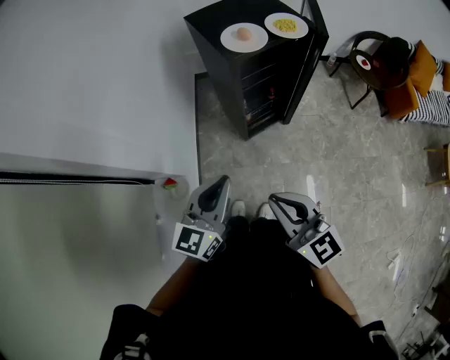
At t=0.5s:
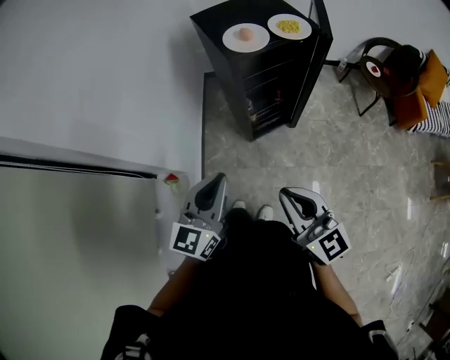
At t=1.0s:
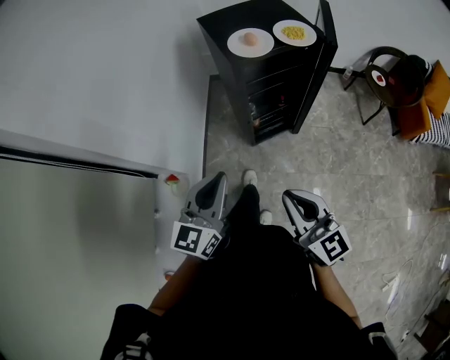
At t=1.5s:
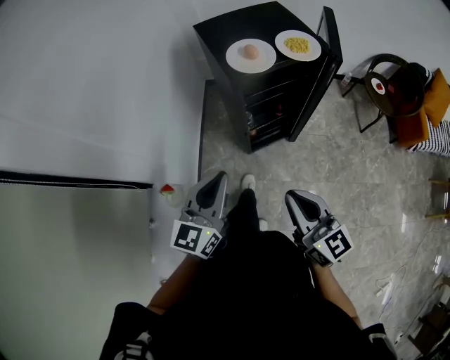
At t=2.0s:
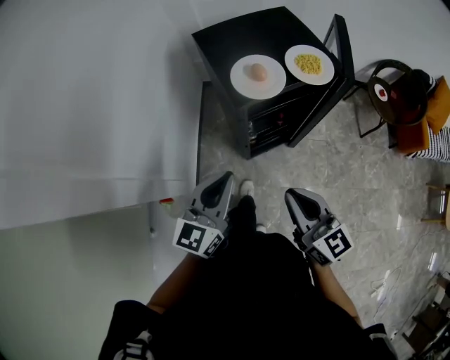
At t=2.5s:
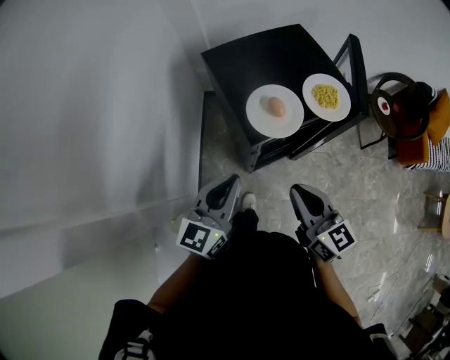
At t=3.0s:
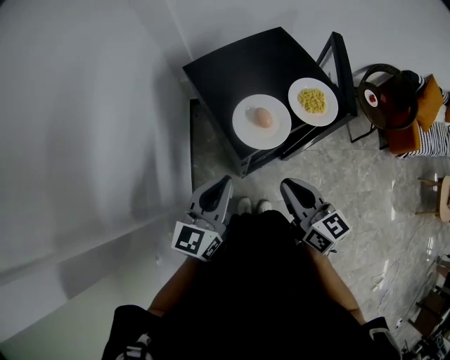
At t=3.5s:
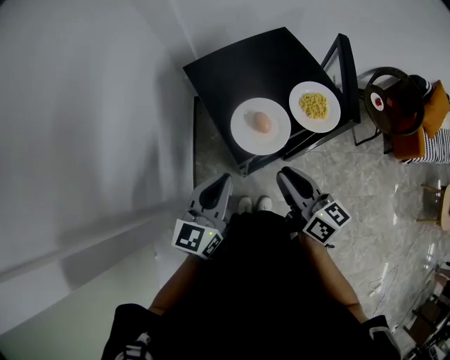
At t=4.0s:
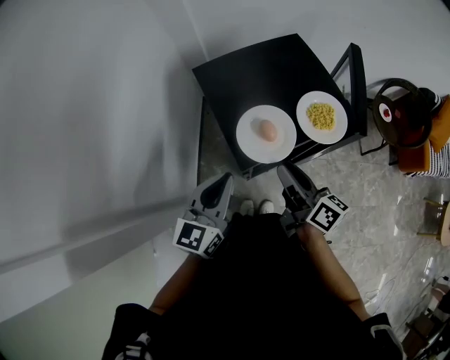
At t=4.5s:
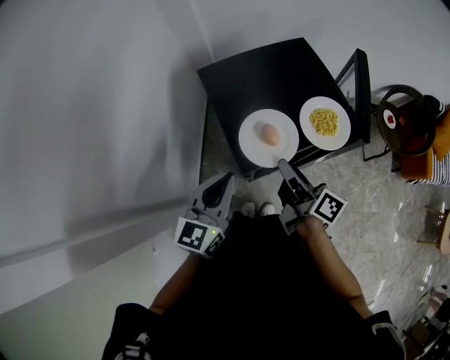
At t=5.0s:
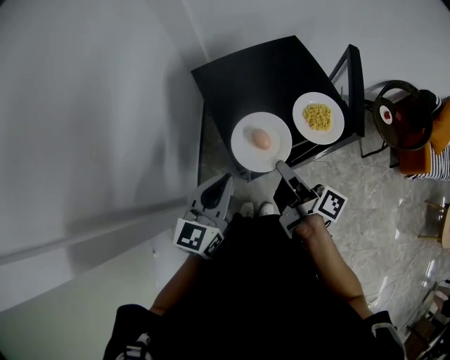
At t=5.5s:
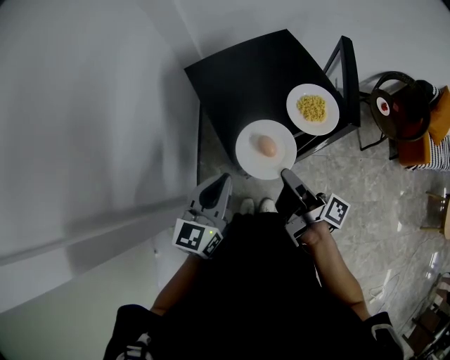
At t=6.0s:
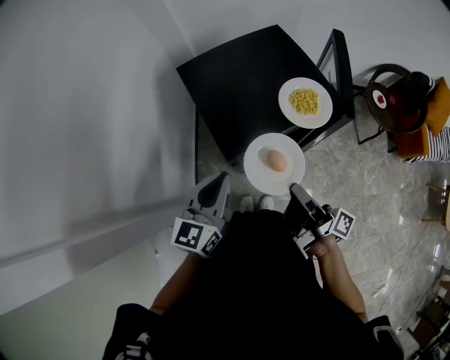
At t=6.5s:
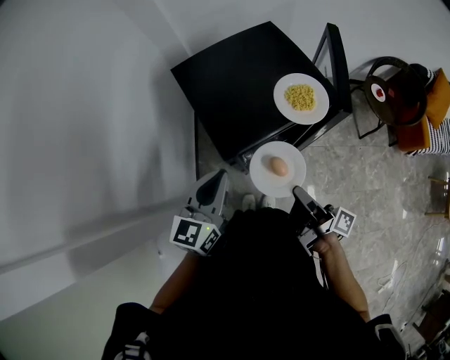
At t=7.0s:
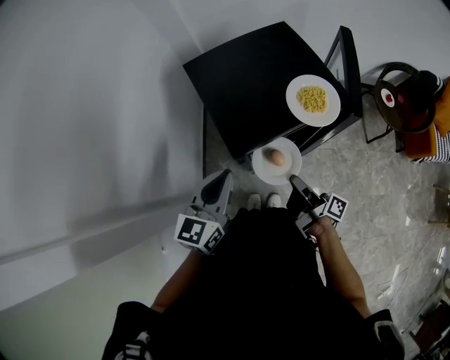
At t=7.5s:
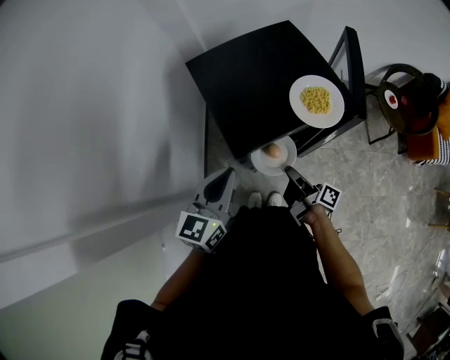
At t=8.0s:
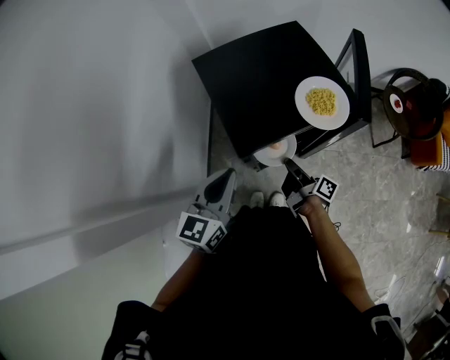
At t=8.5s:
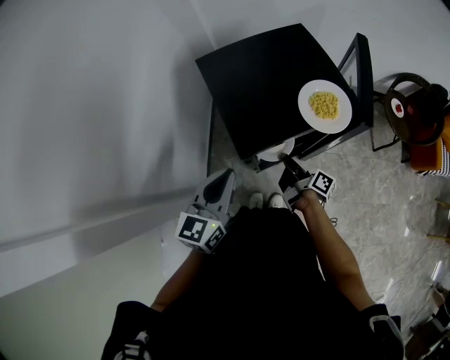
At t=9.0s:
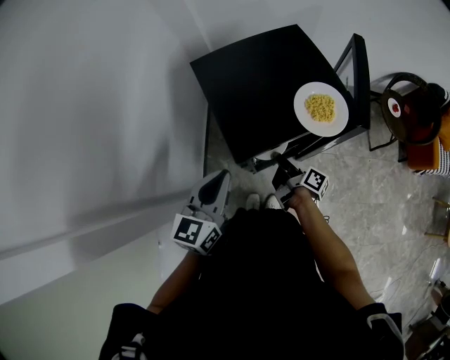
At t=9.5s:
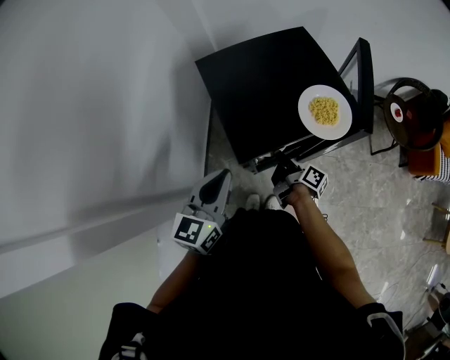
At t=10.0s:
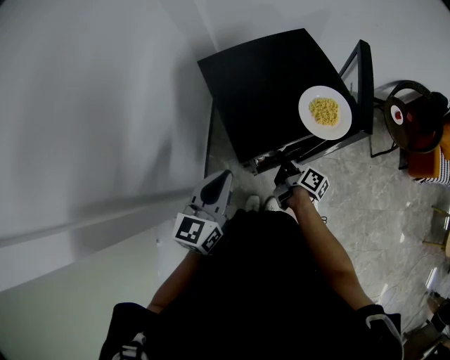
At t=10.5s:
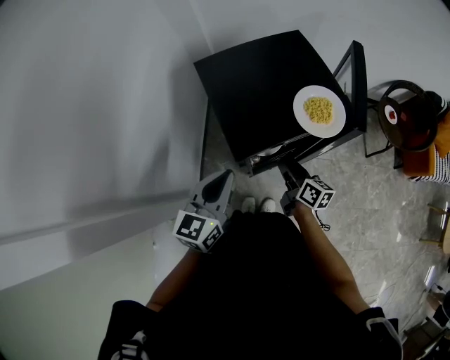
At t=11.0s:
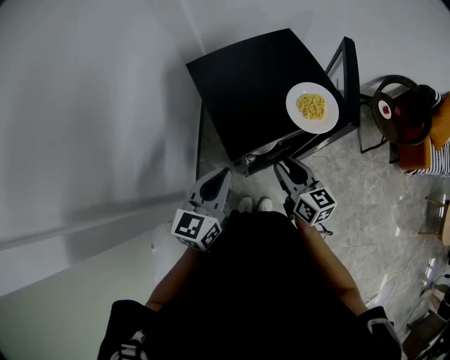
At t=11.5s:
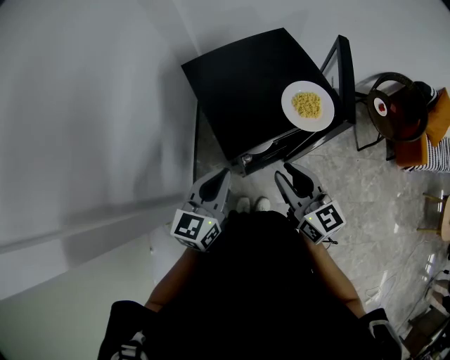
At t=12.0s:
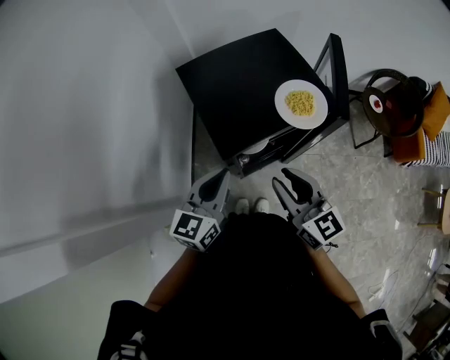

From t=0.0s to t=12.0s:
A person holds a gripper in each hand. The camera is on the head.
From t=0.0s to t=2.0s: The left gripper heads forward, covering some 15 cm. The right gripper travels forward and to the right by some 20 cm.
From t=2.0s to t=4.0s: Both grippers travel together forward, approximately 20 cm. The right gripper changes its angle by about 40 degrees, and opens up.
From t=4.0s to t=6.0s: The right gripper shifts roughly 10 cm backward and to the right, turns by some 40 degrees, and closes.
From t=6.0s to t=8.0s: The right gripper is displaced downward and forward by about 20 cm.
From t=8.0s to t=10.0s: The right gripper opens.
From t=10.0s to t=12.0s: The right gripper travels upward and backward by about 25 cm, and twists approximately 70 degrees counterclockwise, seen from behind.

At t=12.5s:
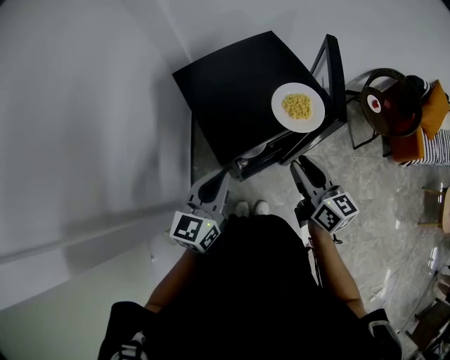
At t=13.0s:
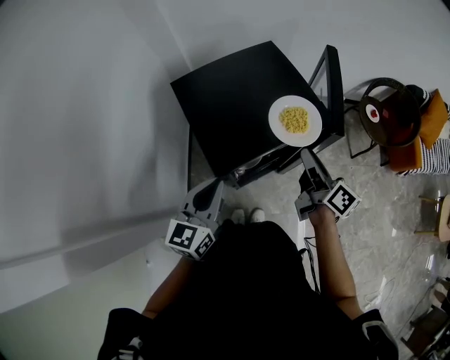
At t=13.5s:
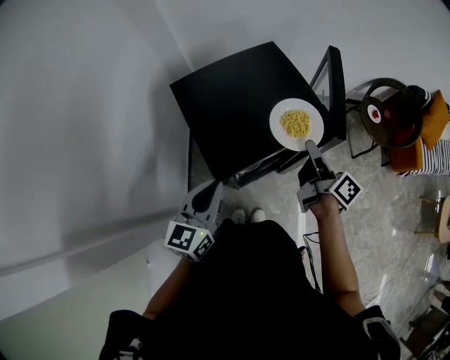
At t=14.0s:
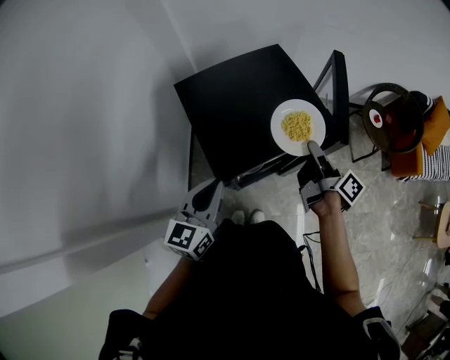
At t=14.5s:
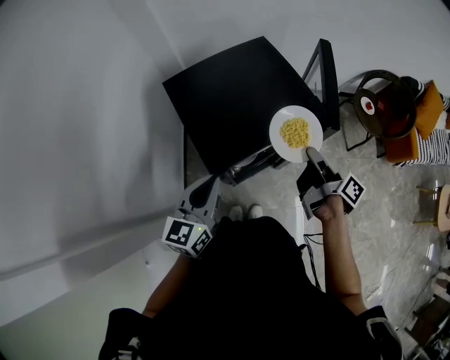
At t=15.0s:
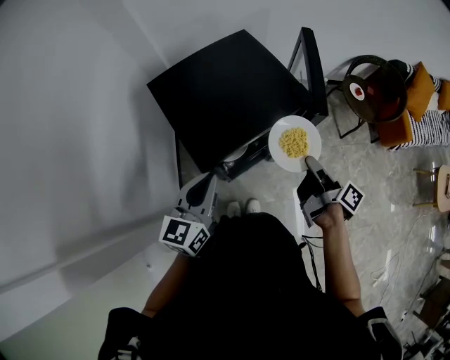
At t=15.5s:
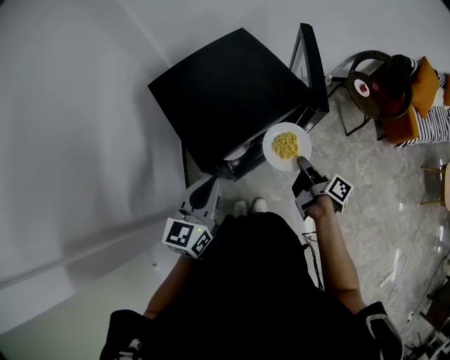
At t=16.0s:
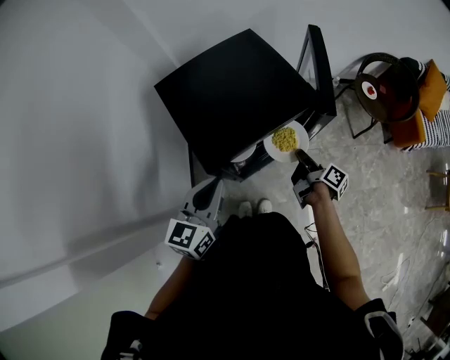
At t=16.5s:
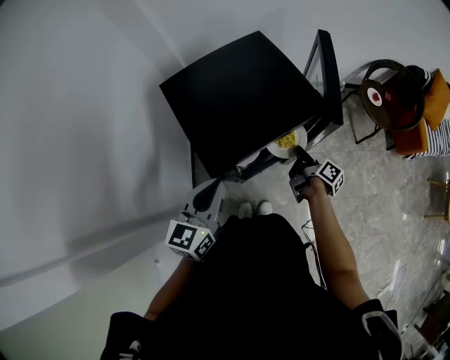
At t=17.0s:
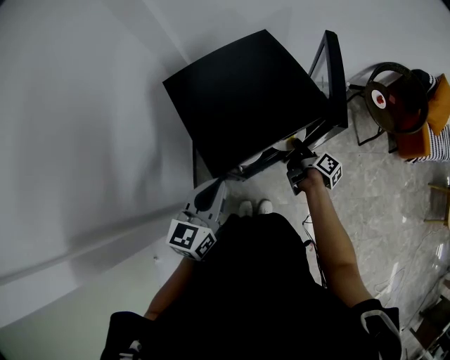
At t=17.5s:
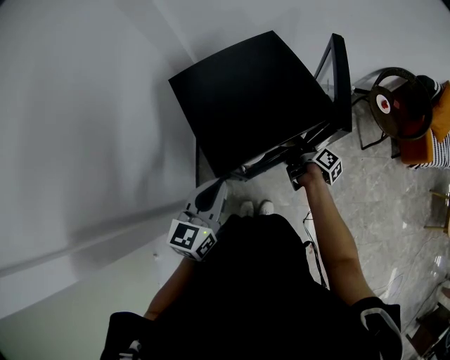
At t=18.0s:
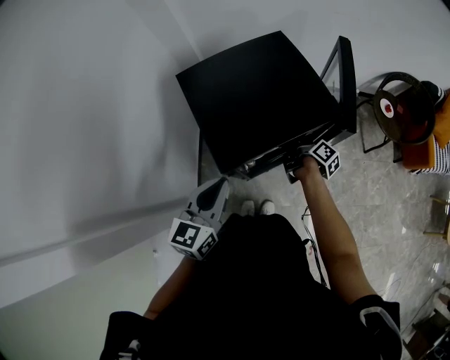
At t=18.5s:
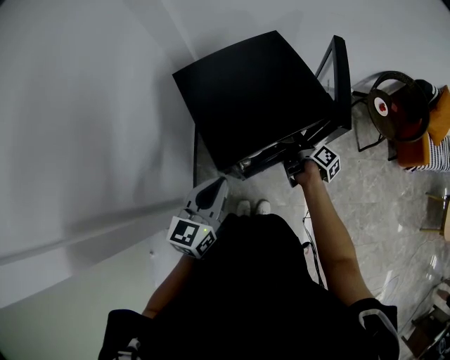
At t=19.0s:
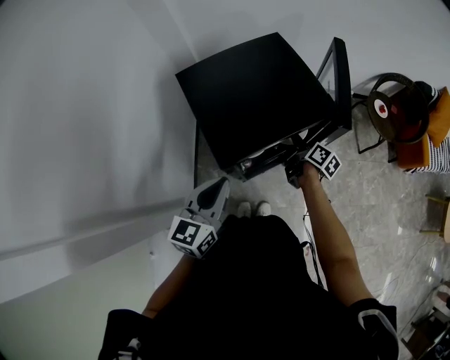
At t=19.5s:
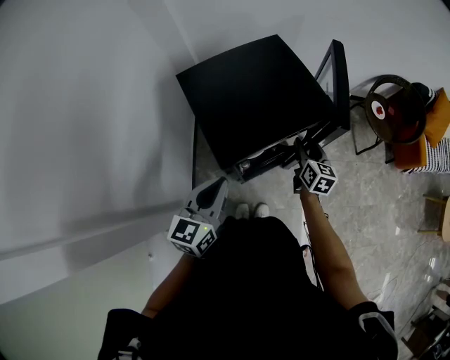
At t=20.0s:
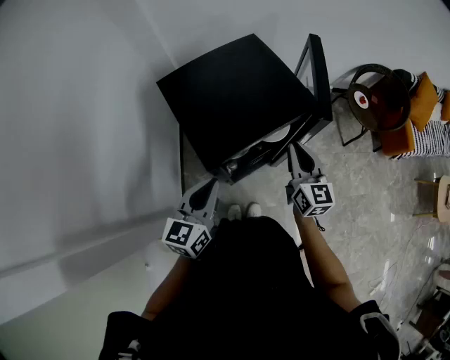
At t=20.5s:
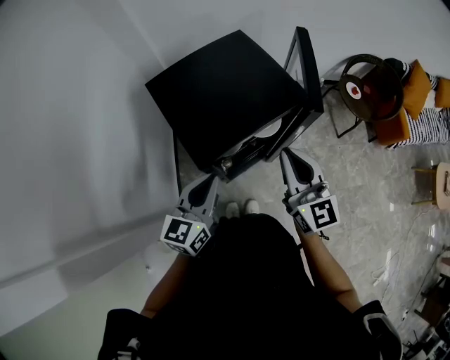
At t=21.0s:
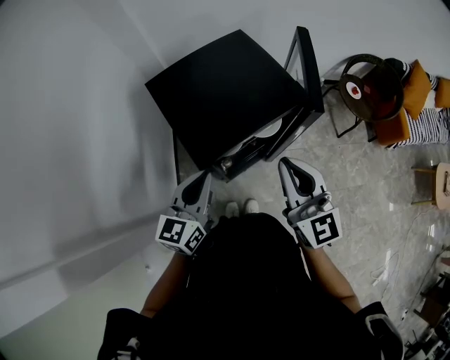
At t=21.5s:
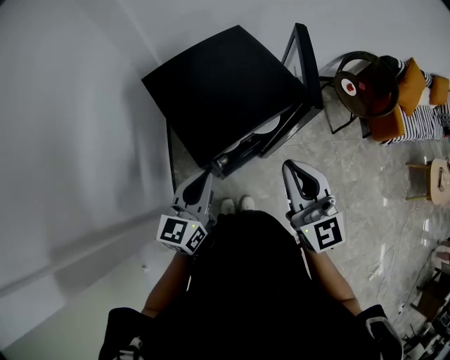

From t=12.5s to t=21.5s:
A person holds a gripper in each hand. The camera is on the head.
From t=12.5s to t=14.5s: The right gripper is displaced forward and to the right by roughly 10 cm, rotates around the line of its fingers by some 60 degrees, clockwise from behind, and closes.
From t=14.5s to t=17.0s: The right gripper heads downward, covering some 15 cm.
From t=17.0s to t=19.5s: The right gripper travels upward by about 5 cm, rotates around the line of its fingers by some 60 degrees, counterclockwise from behind, and opens its fingers.
From t=19.5s to t=21.5s: The right gripper heads upward and backward, covering some 30 cm, swivels roughly 40 degrees, and closes up.

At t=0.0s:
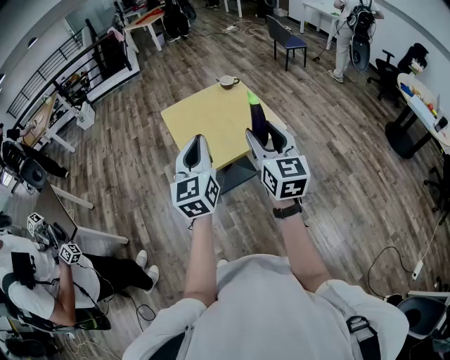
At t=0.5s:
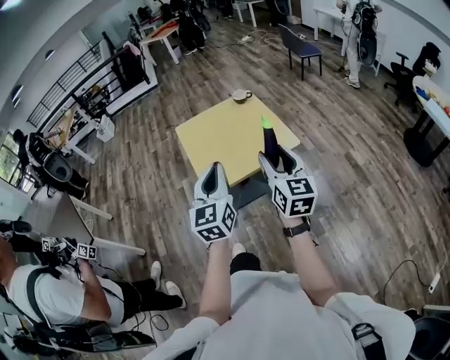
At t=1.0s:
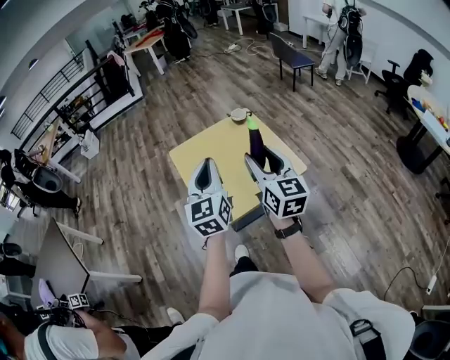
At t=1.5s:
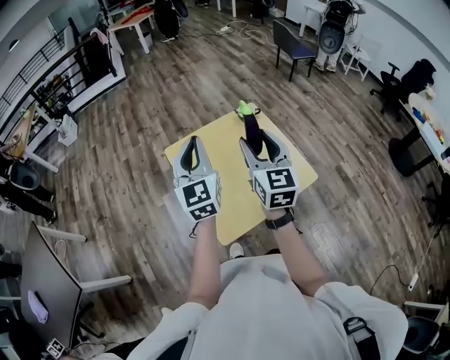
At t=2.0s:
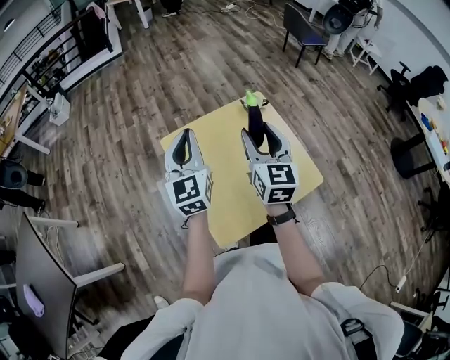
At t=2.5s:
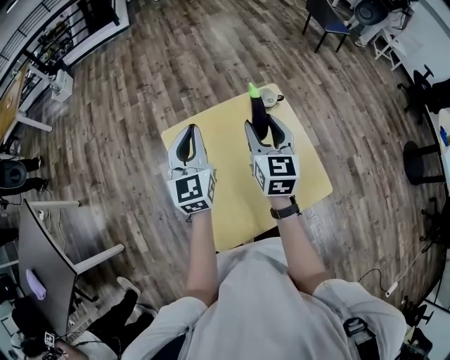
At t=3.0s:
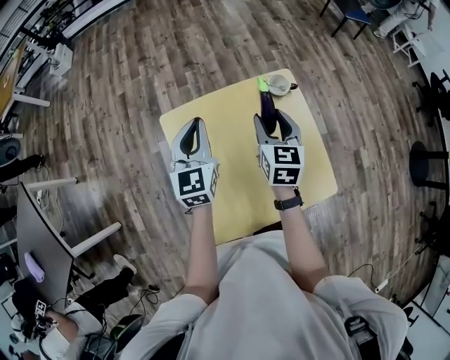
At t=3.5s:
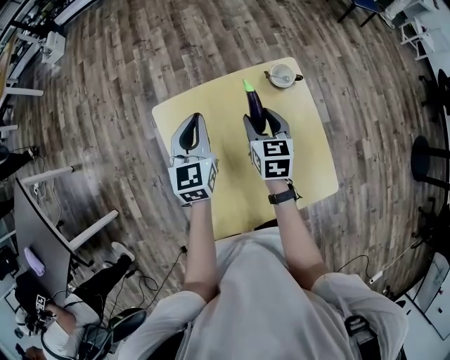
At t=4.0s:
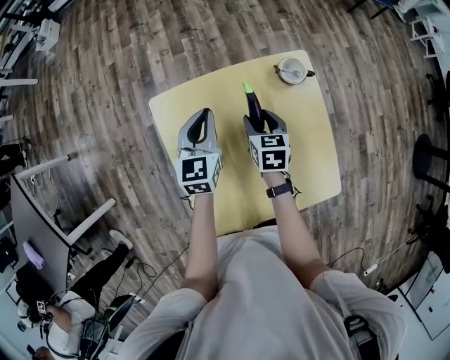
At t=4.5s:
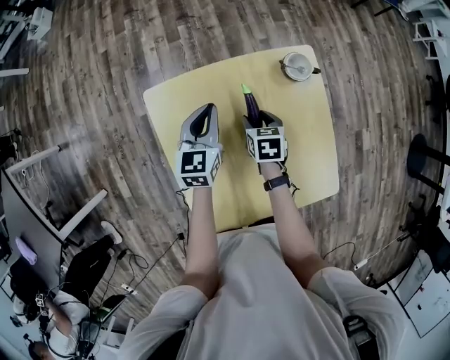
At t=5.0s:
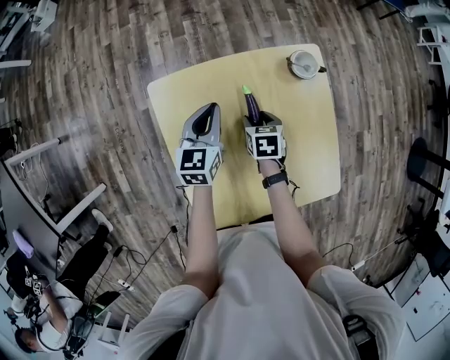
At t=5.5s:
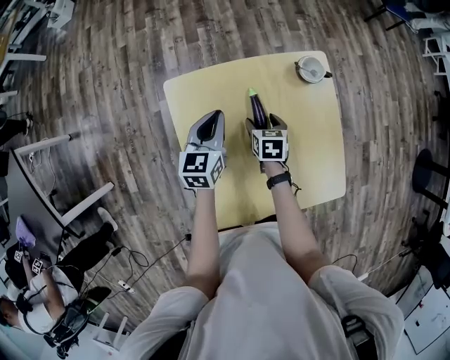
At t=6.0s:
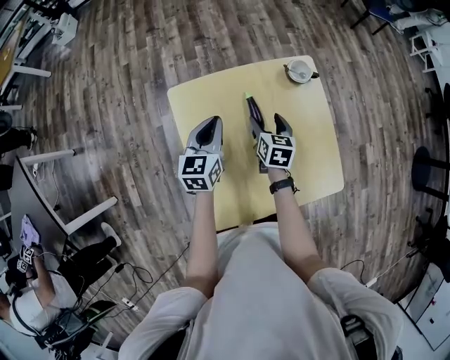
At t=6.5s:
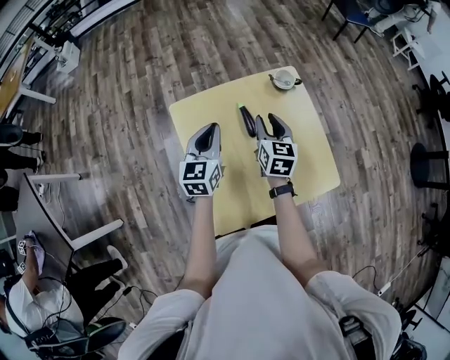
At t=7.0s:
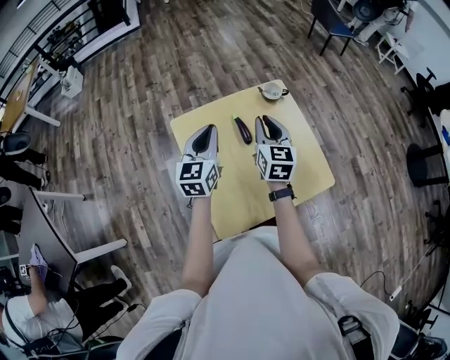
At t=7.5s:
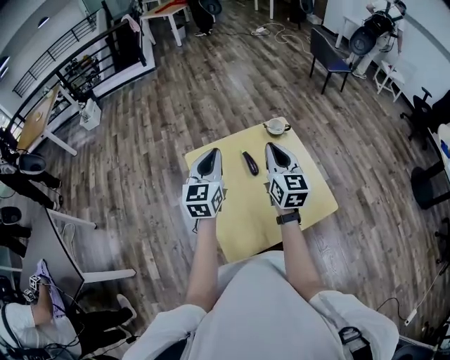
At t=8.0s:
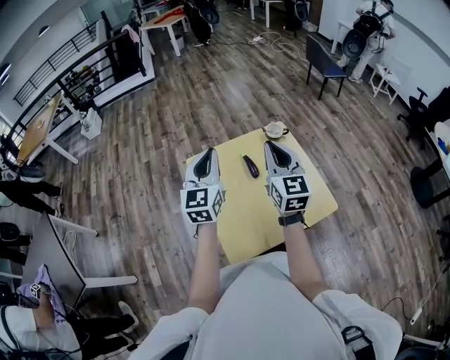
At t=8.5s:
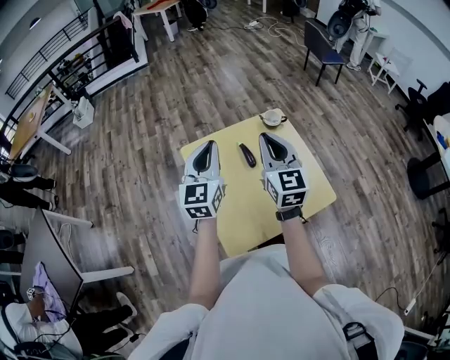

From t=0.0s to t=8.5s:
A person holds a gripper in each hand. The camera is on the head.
From t=0.0s to t=2.0s: Both grippers are carried forward, some 50 cm.
From t=2.0s to t=4.0s: The two grippers go some 30 cm downward and forward. The right gripper angles its fingers downward, by approximately 40 degrees; the left gripper turns by some 20 degrees.
From t=4.0s to t=6.5s: The left gripper travels backward and upward by some 10 cm. The right gripper goes about 15 cm upward and backward, and turns by some 20 degrees.
From t=6.5s to t=8.5s: The left gripper moves upward, roughly 15 cm; the right gripper goes some 25 cm upward and backward, swivels approximately 30 degrees, and closes up.
